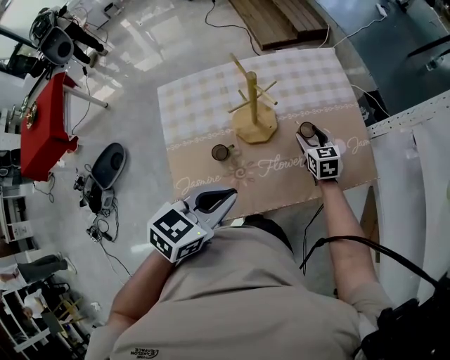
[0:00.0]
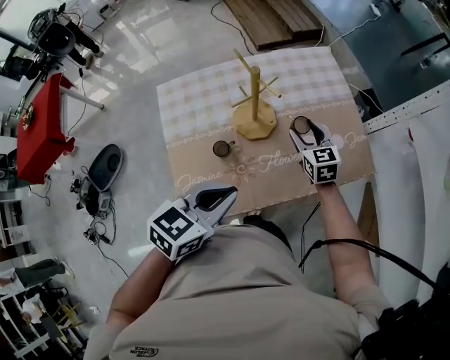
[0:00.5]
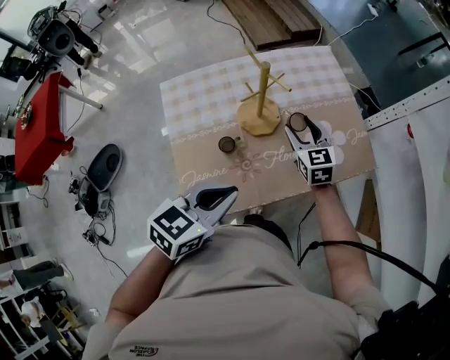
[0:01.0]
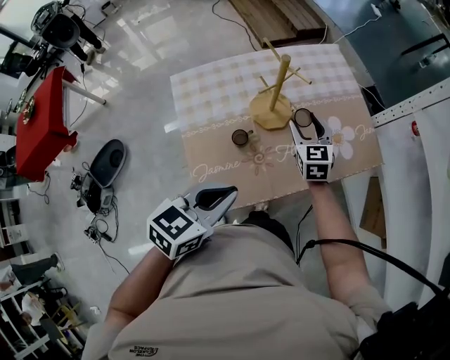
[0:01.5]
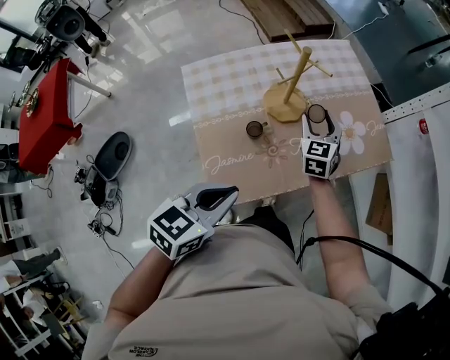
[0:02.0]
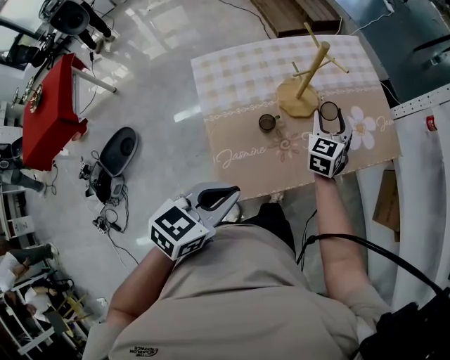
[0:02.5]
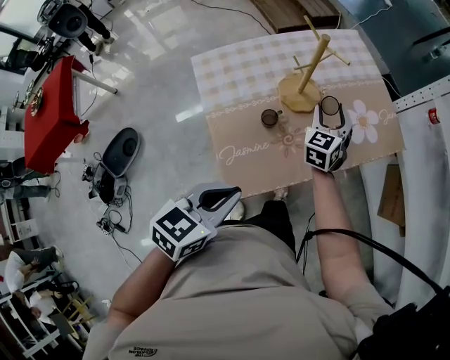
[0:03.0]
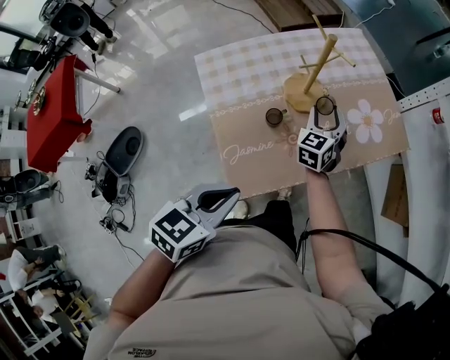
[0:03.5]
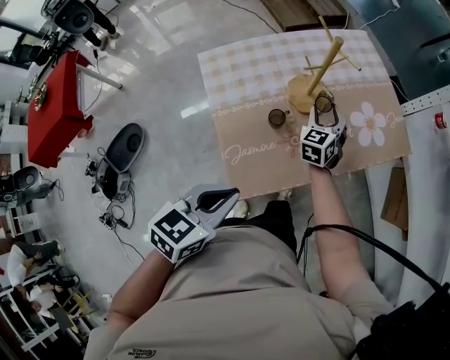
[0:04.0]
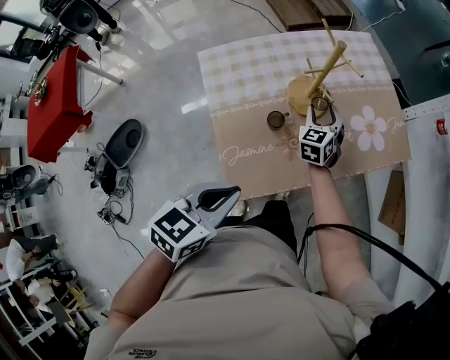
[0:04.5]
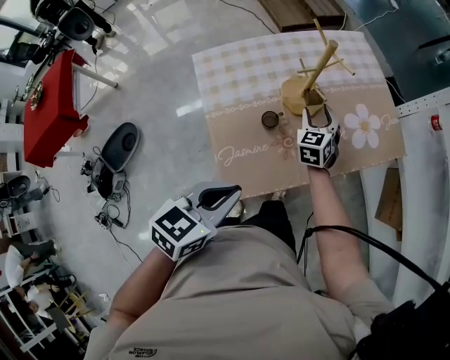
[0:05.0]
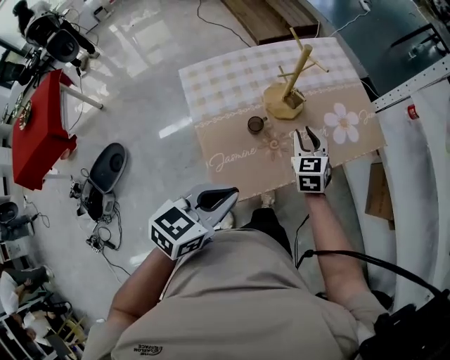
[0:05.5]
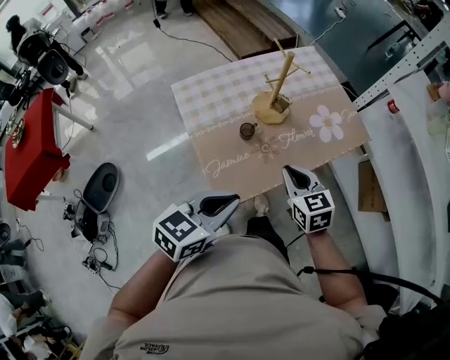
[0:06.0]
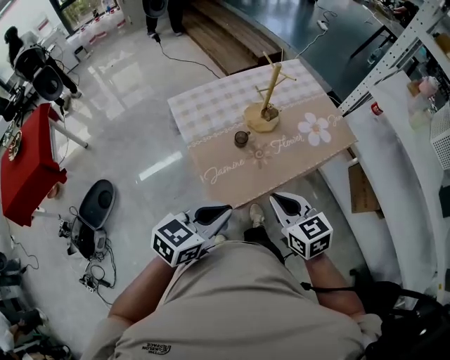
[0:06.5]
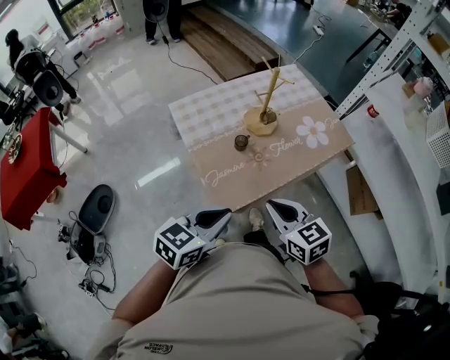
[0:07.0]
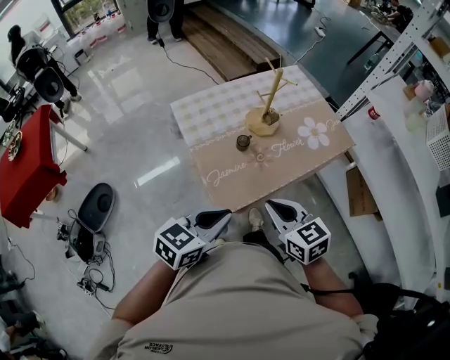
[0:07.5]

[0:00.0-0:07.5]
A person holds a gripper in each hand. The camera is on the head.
0:00.0 to 0:02.0: The right gripper goes about 15 cm upward, backward and to the left, and changes its angle by some 30 degrees, while the left gripper shifts some 15 cm backward and to the left.
0:02.0 to 0:04.0: The left gripper travels backward by roughly 5 cm. Meanwhile the right gripper changes place by some 5 cm.
0:04.0 to 0:05.5: The right gripper heads backward, covering approximately 10 cm, and closes up.
0:05.5 to 0:07.5: The left gripper goes some 10 cm backward, while the right gripper is displaced backward and upward by some 30 cm, turns by some 30 degrees, and closes its fingers.

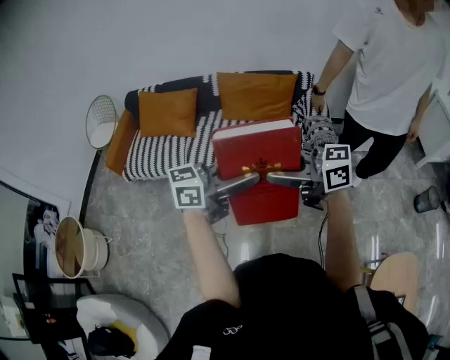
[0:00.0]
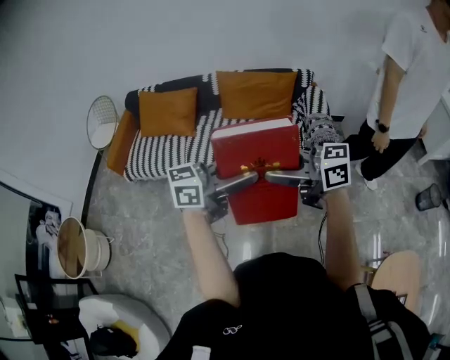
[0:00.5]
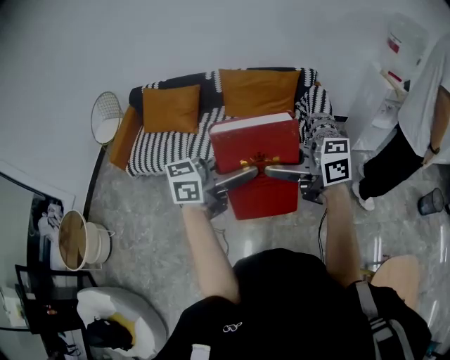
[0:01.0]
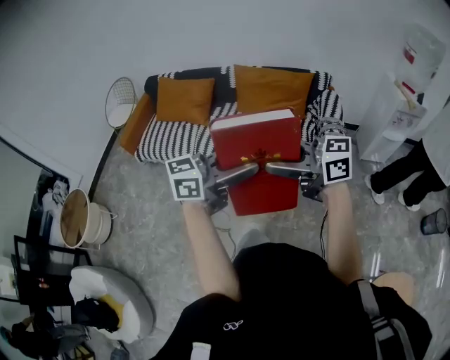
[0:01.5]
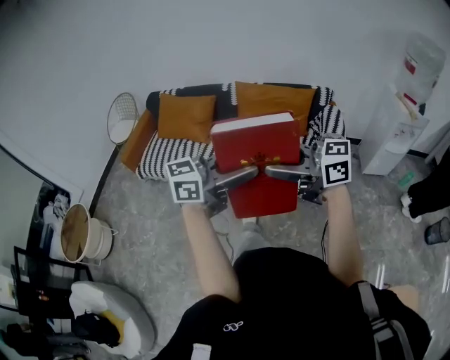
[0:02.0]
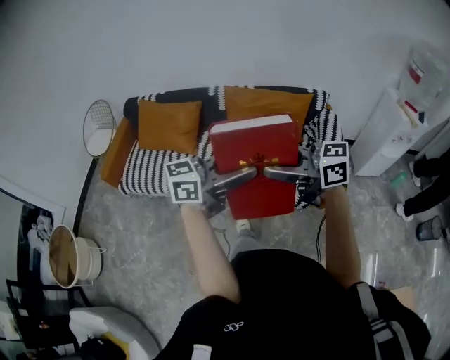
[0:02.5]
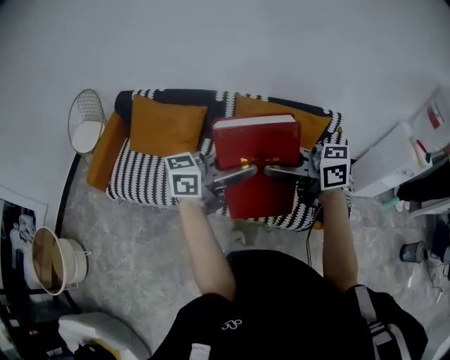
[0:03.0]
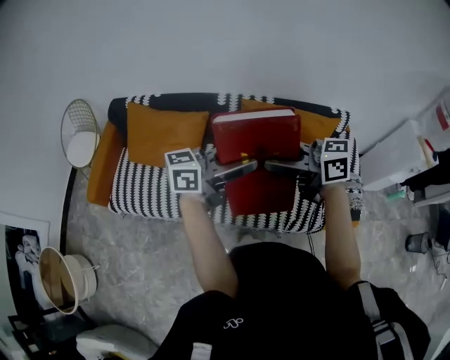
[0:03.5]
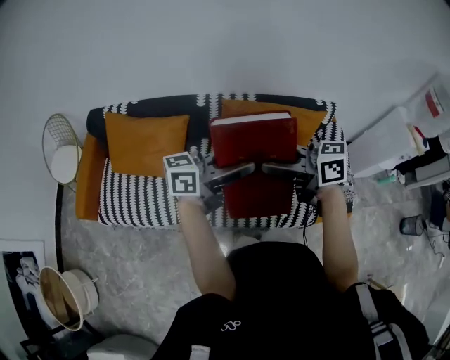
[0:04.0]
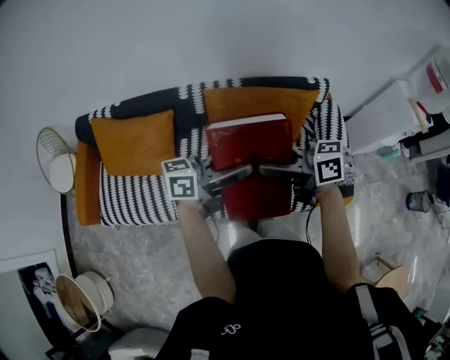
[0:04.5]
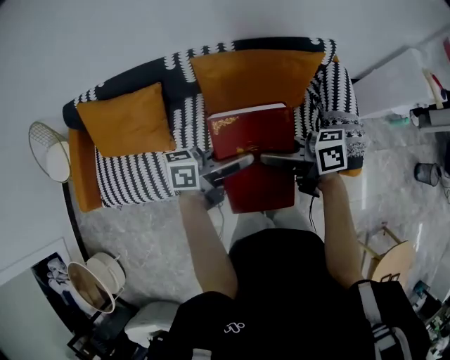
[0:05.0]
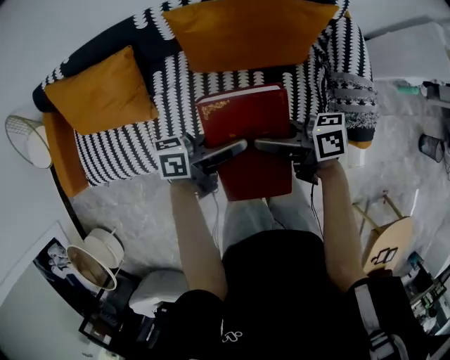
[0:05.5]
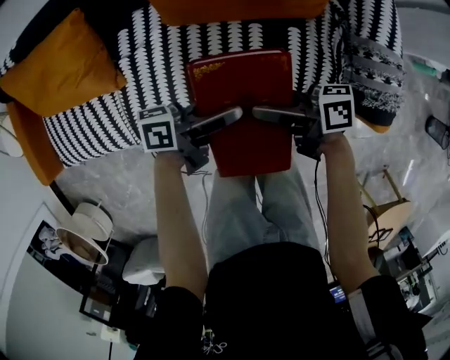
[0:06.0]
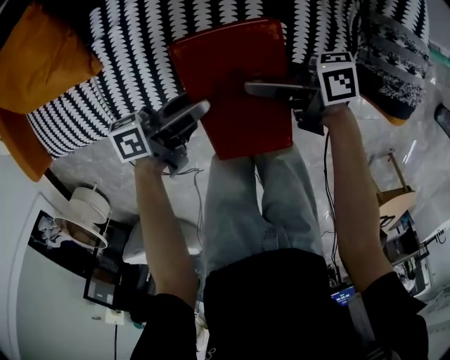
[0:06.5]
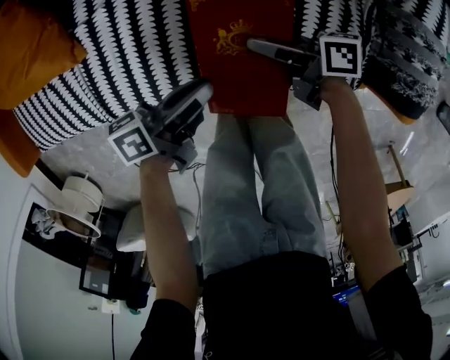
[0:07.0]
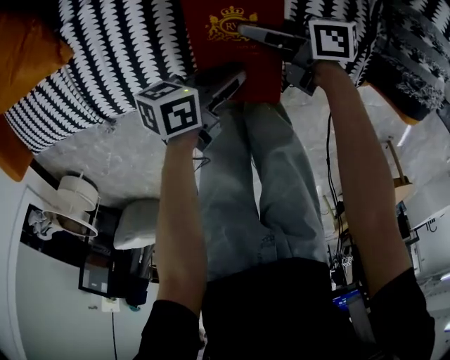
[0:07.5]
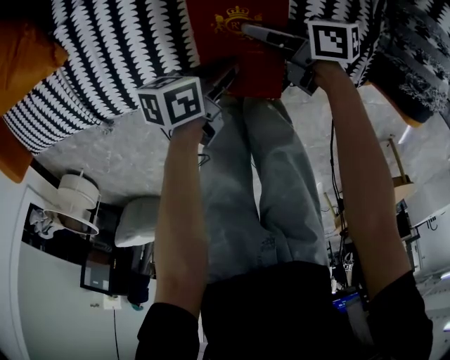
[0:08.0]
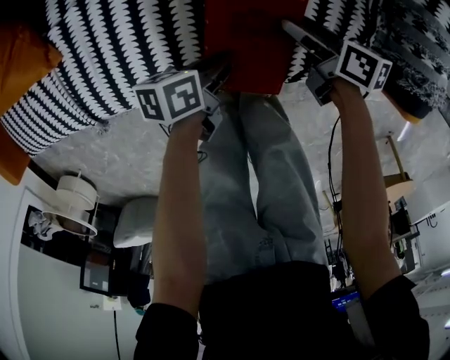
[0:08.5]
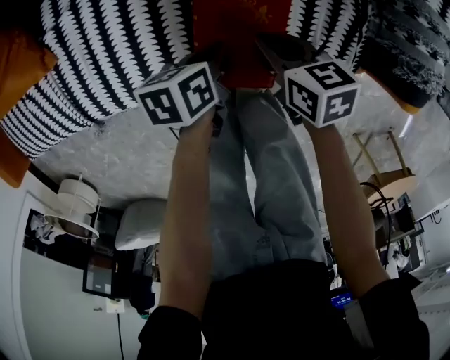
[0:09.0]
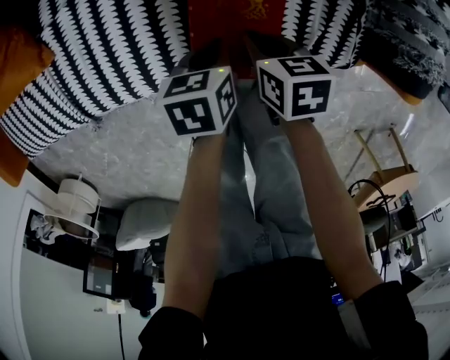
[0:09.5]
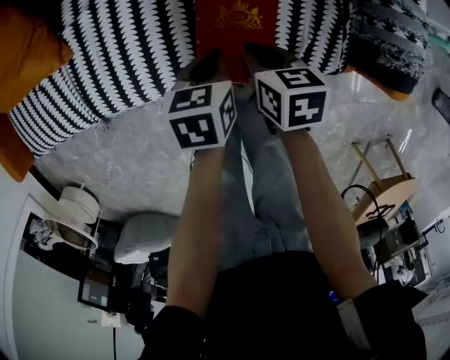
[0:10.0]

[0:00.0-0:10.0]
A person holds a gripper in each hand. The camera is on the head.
0:02.0 to 0:04.0: The two grippers travel together, approximately 50 cm. The right gripper turns by approximately 20 degrees, while the left gripper swivels about 20 degrees.
0:04.0 to 0:06.0: Both grippers travel together downward, some 35 cm. The left gripper rotates some 40 degrees. The right gripper rolls clockwise, seen from behind, by about 40 degrees.
0:06.0 to 0:08.0: The two grippers go about 20 cm downward. The left gripper turns by approximately 30 degrees, and closes up.
0:08.0 to 0:10.0: The left gripper heads upward, covering approximately 5 cm, and rotates approximately 40 degrees. The right gripper ends up roughly 10 cm from where it was, changes its angle by about 40 degrees, and closes up.

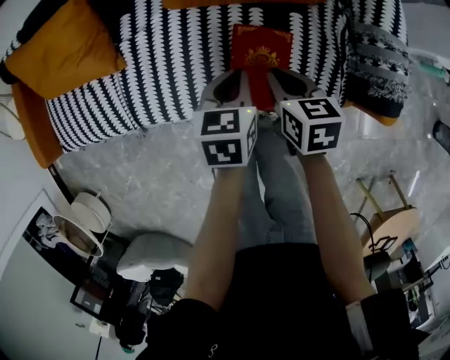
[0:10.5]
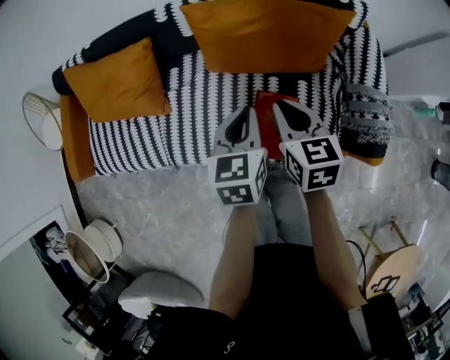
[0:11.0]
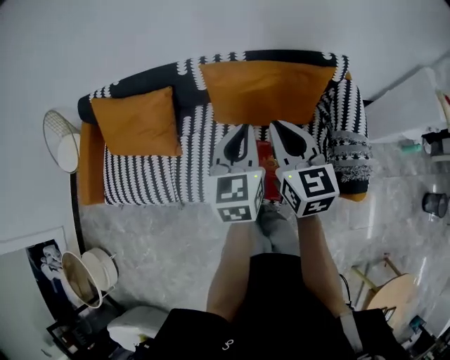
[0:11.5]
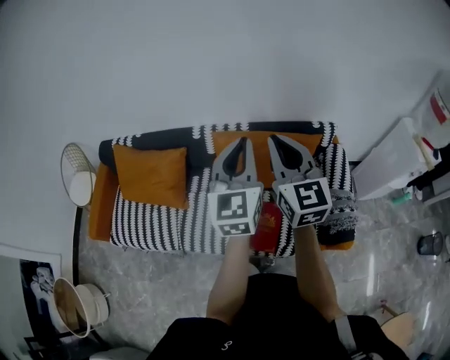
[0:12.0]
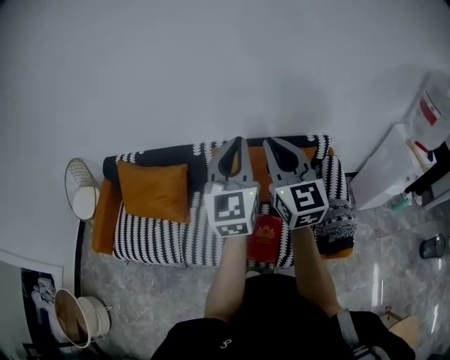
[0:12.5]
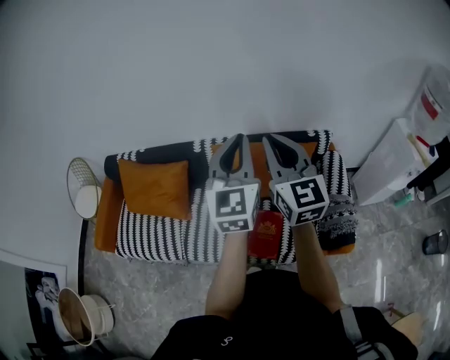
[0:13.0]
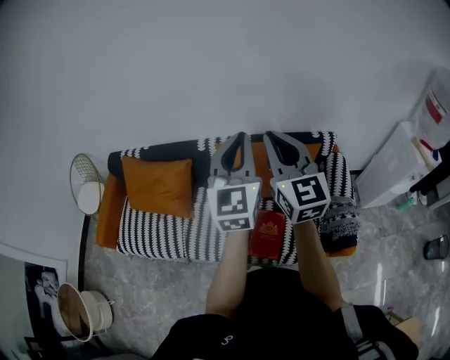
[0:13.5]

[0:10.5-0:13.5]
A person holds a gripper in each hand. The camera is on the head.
0:10.5 to 0:12.0: The two grippers go about 50 cm upward. The left gripper tips its fingers upward by about 50 degrees. The right gripper points its fingers some 50 degrees further upward.
0:12.0 to 0:13.5: There are only small adjustments of the grippers.

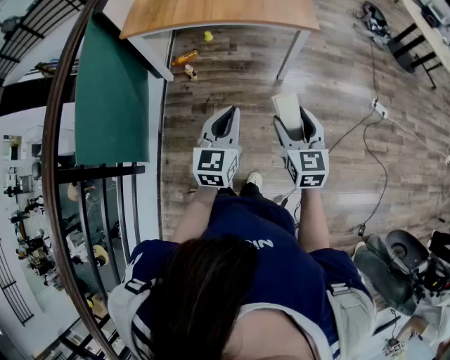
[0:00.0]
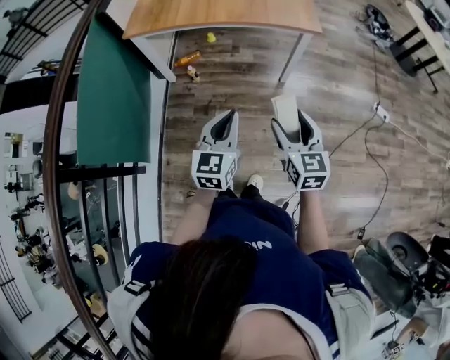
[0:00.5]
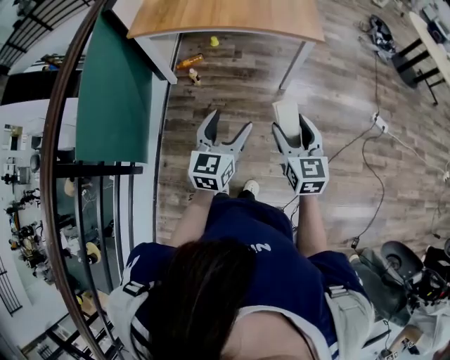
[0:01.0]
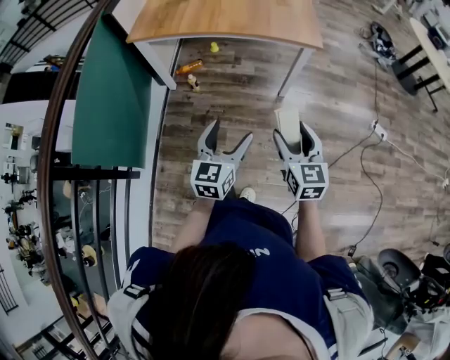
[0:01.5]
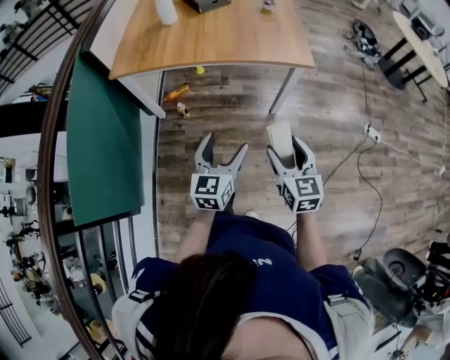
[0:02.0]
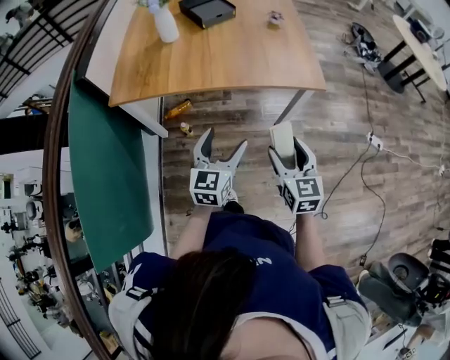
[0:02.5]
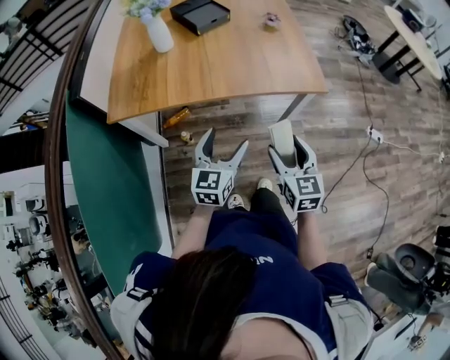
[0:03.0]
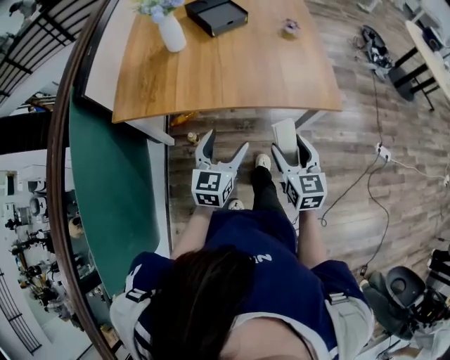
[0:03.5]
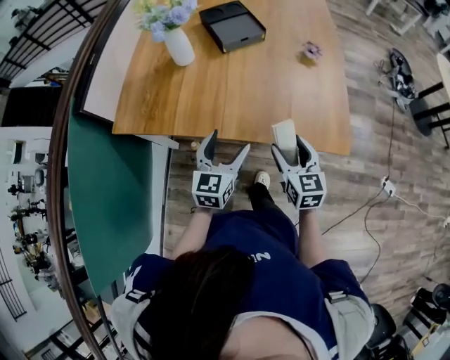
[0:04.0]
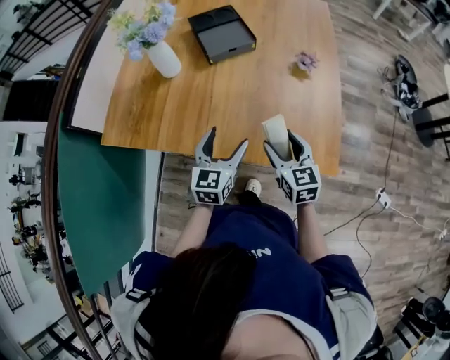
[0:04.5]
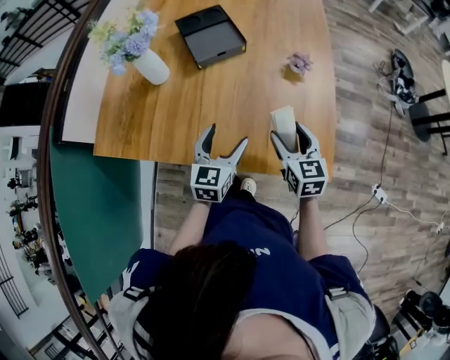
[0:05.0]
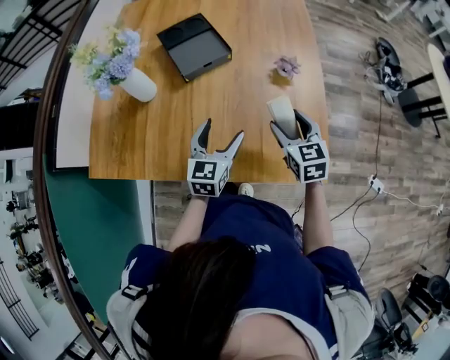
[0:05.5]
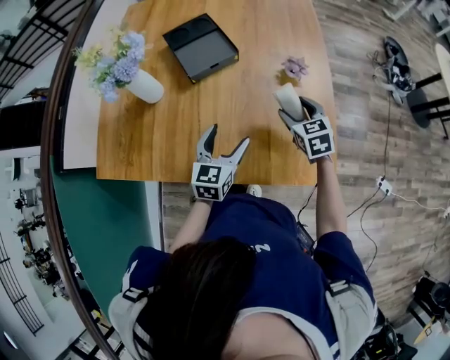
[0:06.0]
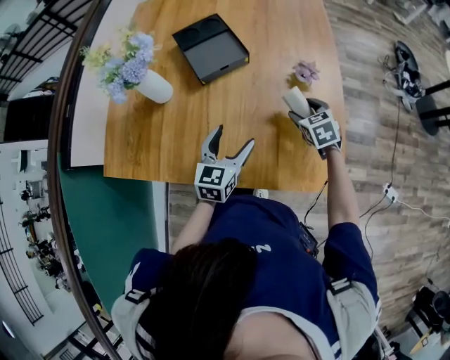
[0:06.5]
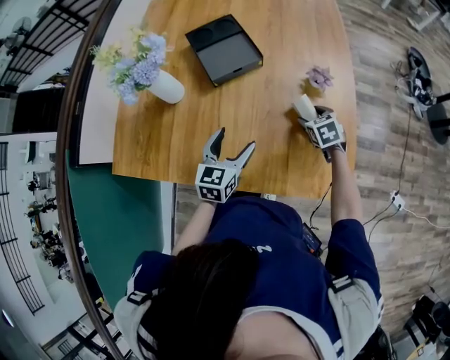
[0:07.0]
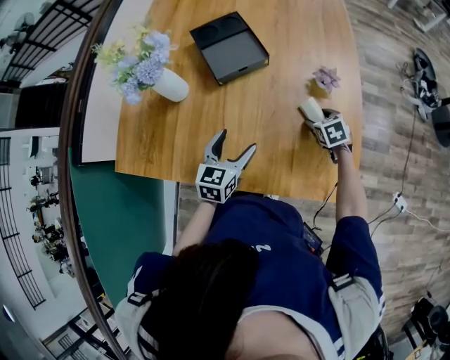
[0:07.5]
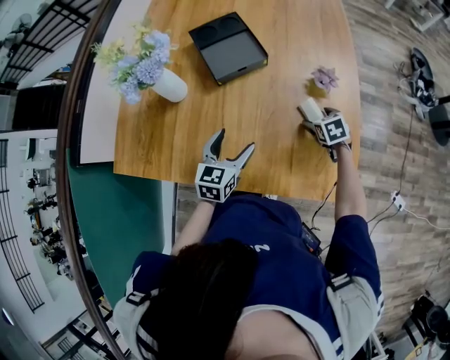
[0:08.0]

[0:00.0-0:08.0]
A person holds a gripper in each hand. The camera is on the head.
0:00.0 to 0:02.0: The two grippers go about 10 cm forward. The left gripper opens its fingers.
0:02.0 to 0:04.0: The two grippers travel together, forward, about 40 cm.
0:04.0 to 0:06.0: The grippers both shift forward and to the right by approximately 25 cm.
0:06.0 to 0:08.0: The left gripper travels to the left by about 5 cm. The right gripper shifts some 10 cm downward, and rotates some 20 degrees.
